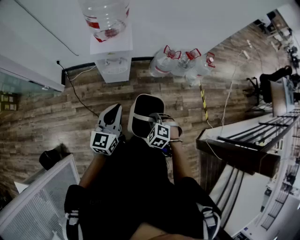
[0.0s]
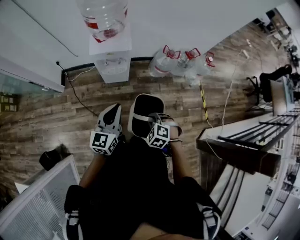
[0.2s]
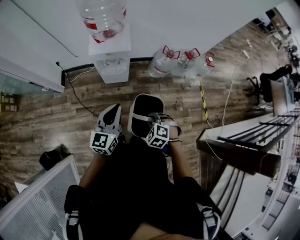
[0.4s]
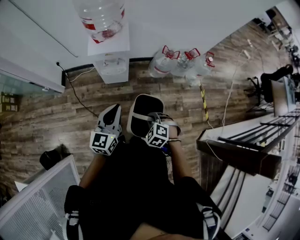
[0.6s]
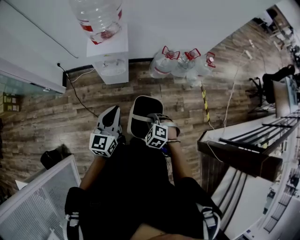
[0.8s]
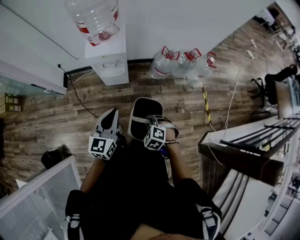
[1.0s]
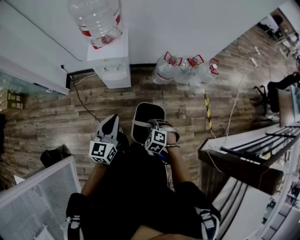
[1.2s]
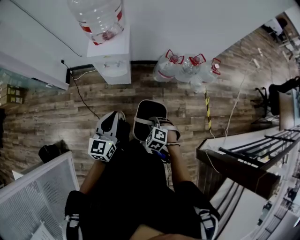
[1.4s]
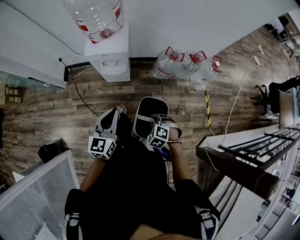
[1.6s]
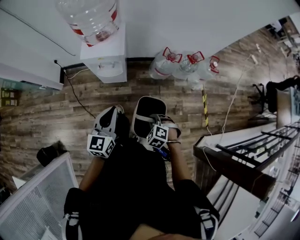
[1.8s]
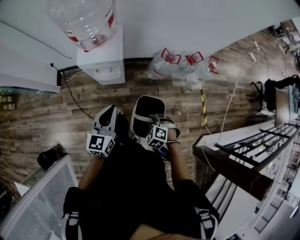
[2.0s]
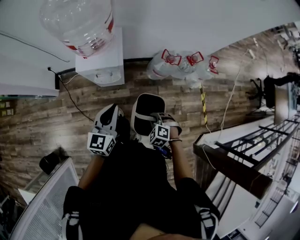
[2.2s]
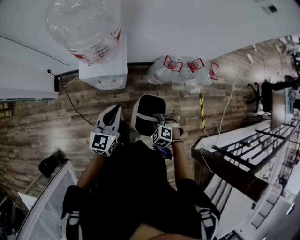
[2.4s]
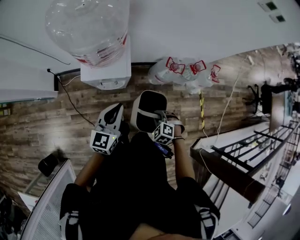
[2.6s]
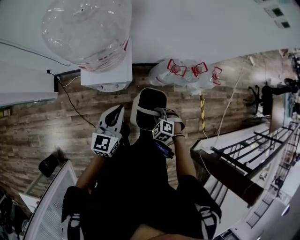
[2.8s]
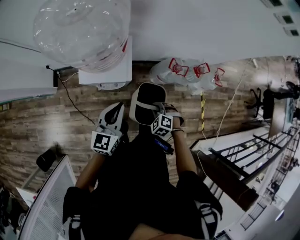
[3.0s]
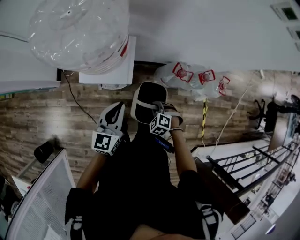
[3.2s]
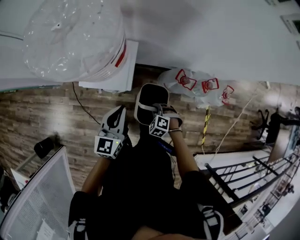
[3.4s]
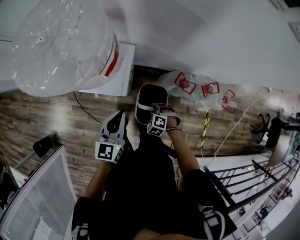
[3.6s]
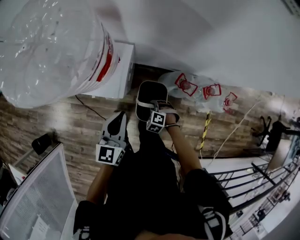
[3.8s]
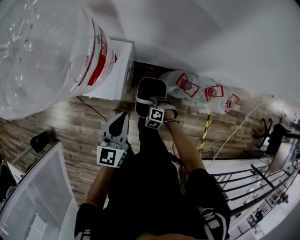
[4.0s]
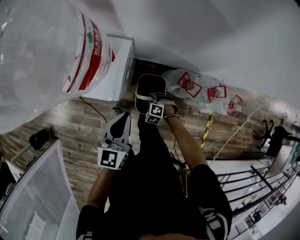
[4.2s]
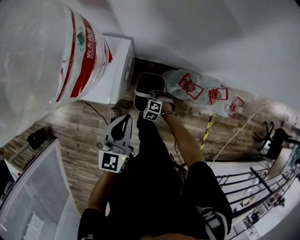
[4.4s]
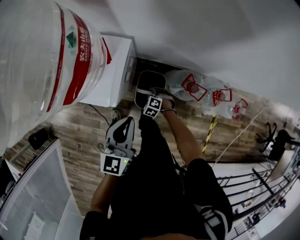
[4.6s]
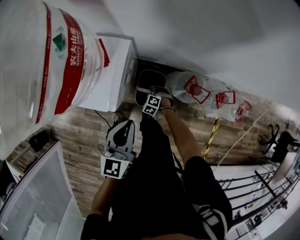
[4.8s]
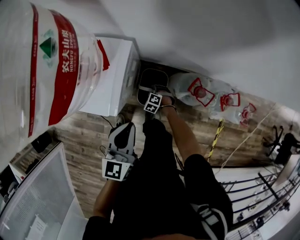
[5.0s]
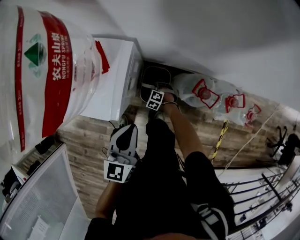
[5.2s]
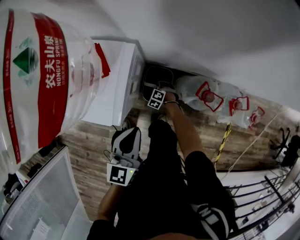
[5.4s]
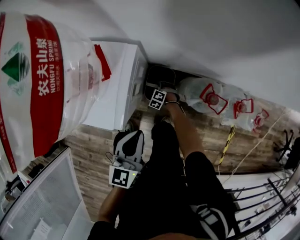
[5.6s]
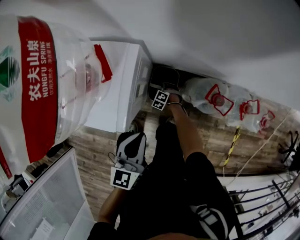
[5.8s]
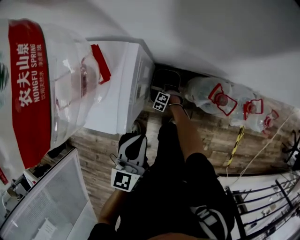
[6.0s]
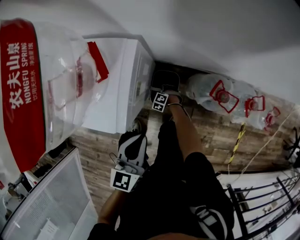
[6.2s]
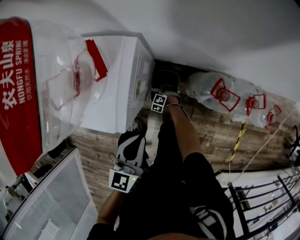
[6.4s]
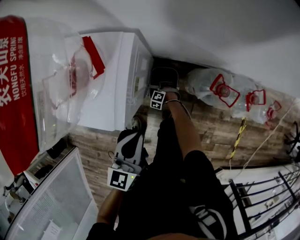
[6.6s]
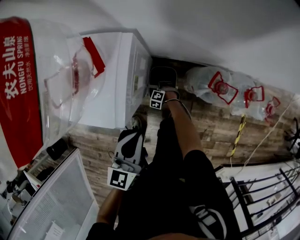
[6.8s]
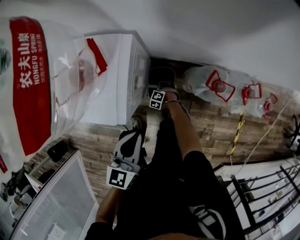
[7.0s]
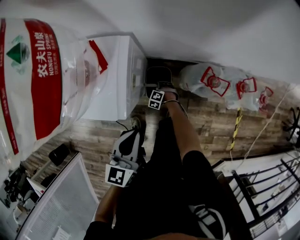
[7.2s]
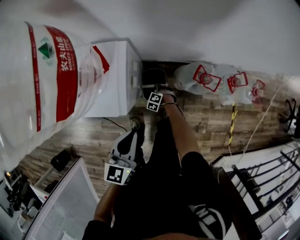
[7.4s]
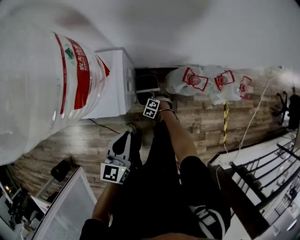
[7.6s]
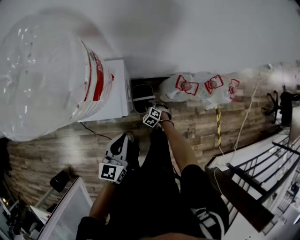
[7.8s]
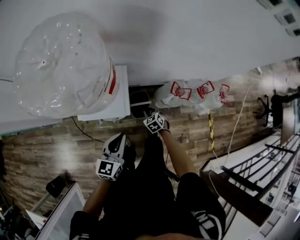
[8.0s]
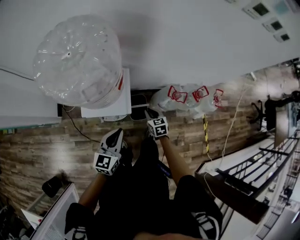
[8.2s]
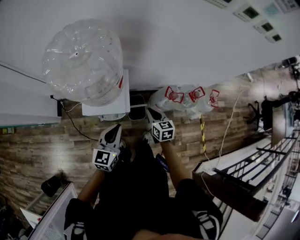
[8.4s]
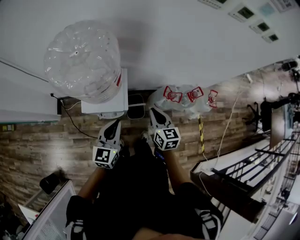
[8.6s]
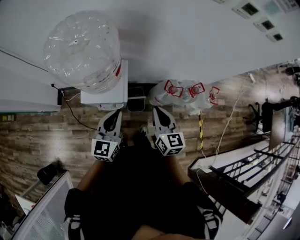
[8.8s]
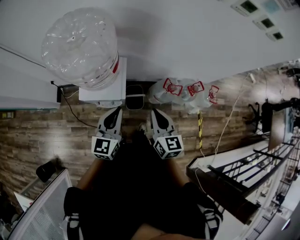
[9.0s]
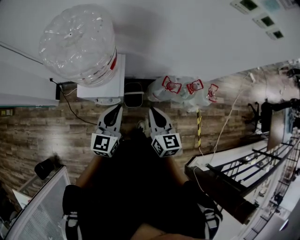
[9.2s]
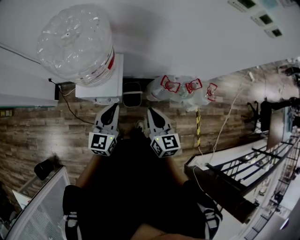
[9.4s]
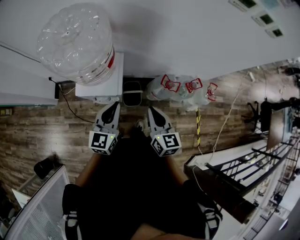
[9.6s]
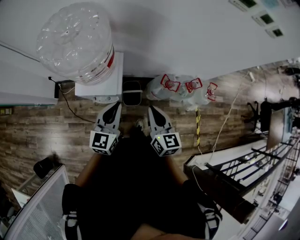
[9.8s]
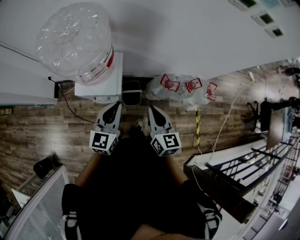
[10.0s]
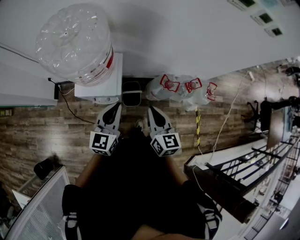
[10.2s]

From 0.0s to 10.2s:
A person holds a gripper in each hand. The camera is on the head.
From 0.0s to 1.4s: The two grippers go some 5 cm to the right.
From 1.4s to 3.0s: Both grippers move forward, about 30 cm.
From 3.0s to 4.4s: The right gripper shifts approximately 30 cm downward and forward. The left gripper goes approximately 15 cm to the right, downward and forward, and turns by some 20 degrees.
From 4.4s to 5.8s: The left gripper shifts roughly 10 cm downward. The right gripper shifts roughly 25 cm downward and forward.
From 5.8s to 7.2s: The right gripper ends up some 5 cm from where it was, and opens its fingers.
From 7.2s to 8.8s: The right gripper is displaced upward by roughly 70 cm, points its fingers about 50 degrees further upward, and closes. Meanwhile the left gripper shifts approximately 25 cm upward.
From 8.8s to 10.2s: There are only small adjustments of the grippers.

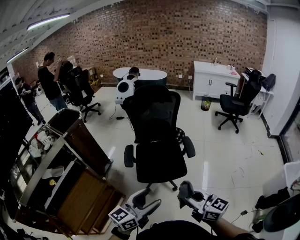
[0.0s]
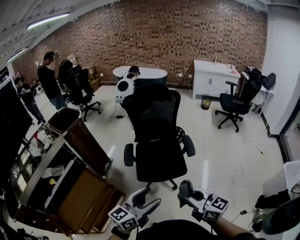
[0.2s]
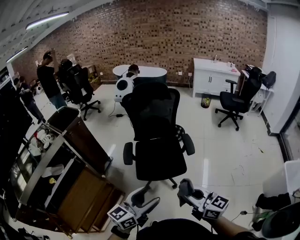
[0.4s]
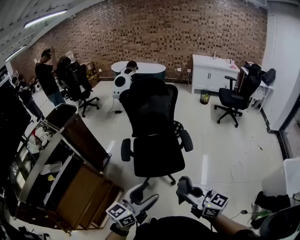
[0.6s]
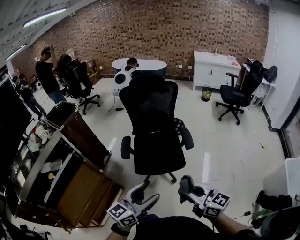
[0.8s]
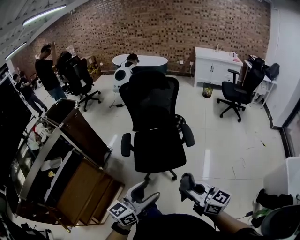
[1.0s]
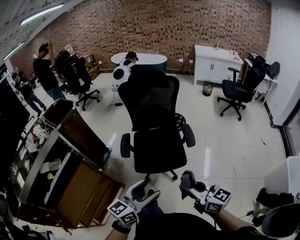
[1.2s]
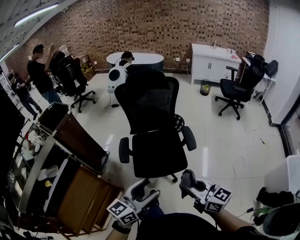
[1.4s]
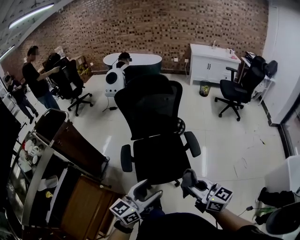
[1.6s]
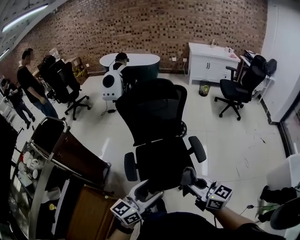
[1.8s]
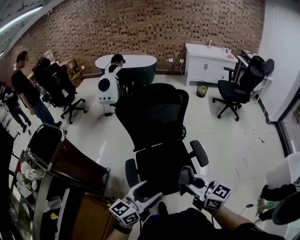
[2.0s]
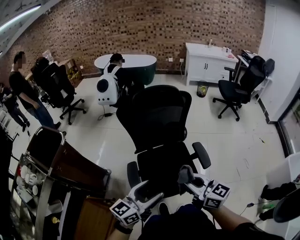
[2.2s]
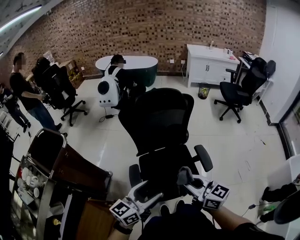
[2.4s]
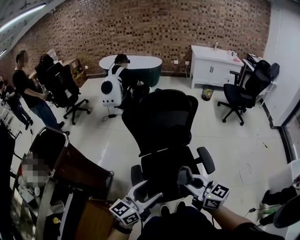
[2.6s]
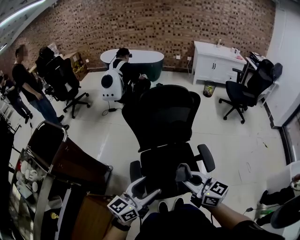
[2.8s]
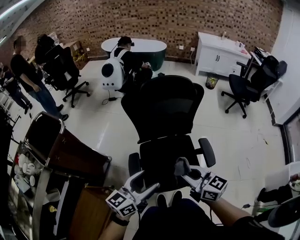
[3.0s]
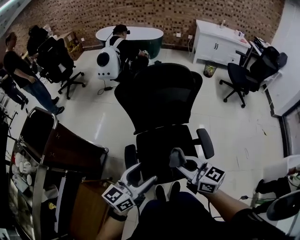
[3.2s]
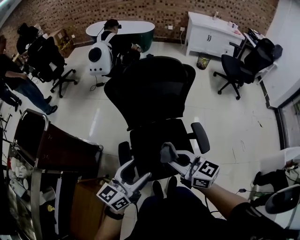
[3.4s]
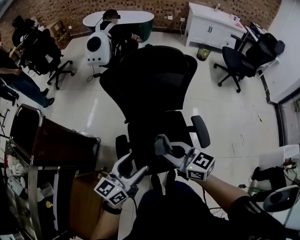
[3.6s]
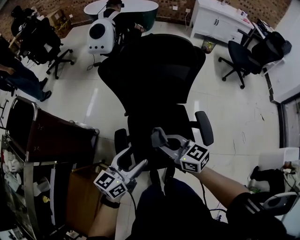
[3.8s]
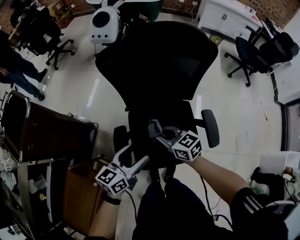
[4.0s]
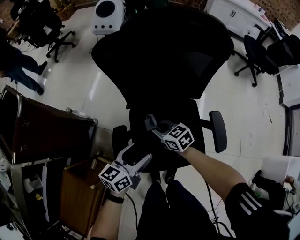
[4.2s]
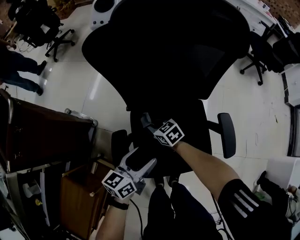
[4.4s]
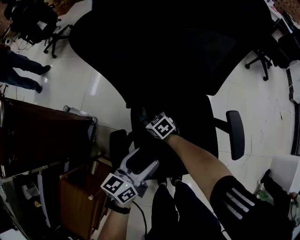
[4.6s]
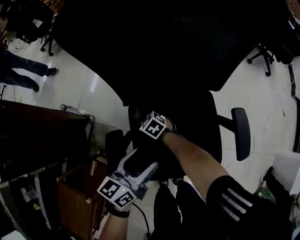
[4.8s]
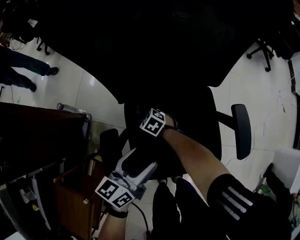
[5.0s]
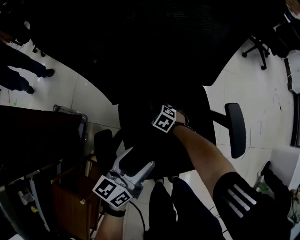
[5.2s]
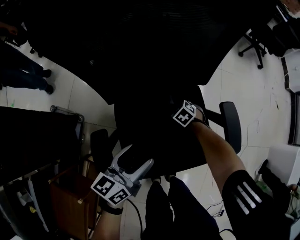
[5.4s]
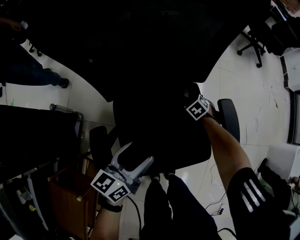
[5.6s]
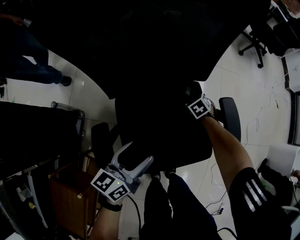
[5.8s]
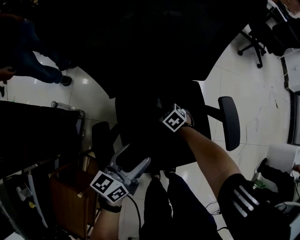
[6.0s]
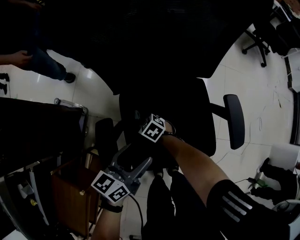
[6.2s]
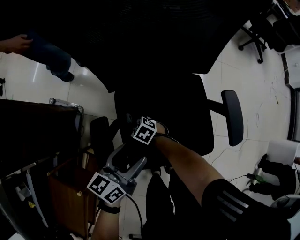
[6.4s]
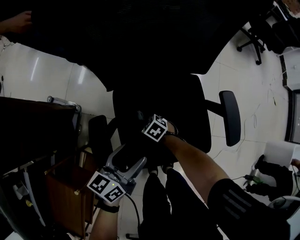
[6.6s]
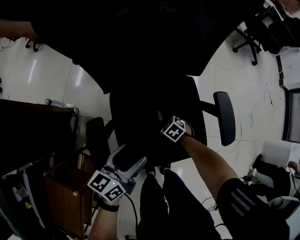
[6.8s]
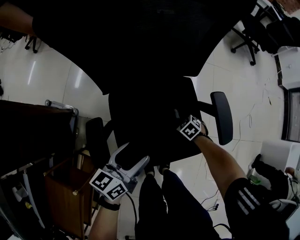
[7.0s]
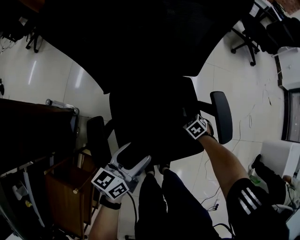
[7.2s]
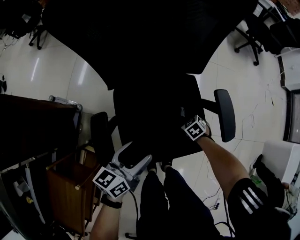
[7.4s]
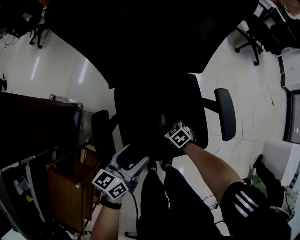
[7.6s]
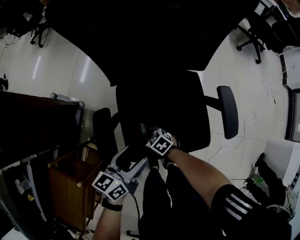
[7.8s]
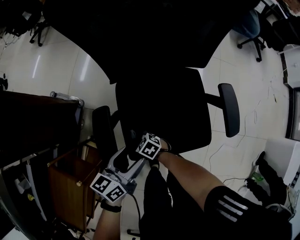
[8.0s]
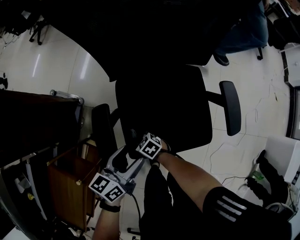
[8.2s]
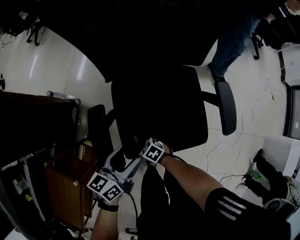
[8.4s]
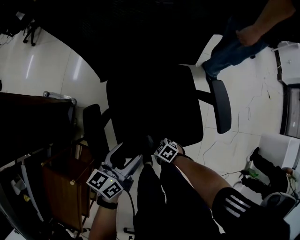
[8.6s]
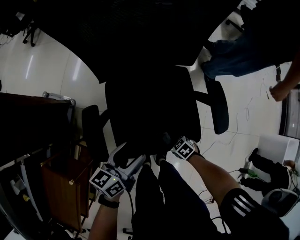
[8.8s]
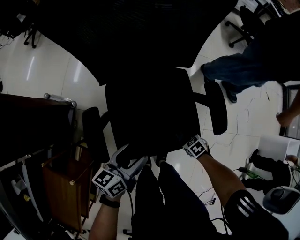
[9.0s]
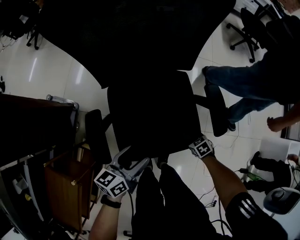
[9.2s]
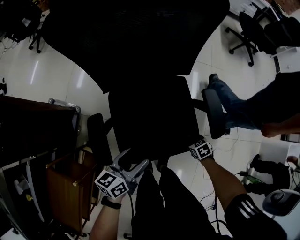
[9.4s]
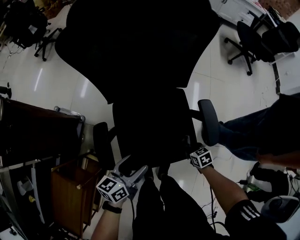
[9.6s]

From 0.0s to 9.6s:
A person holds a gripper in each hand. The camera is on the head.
From 0.0s to 1.6s: Both grippers move forward, some 15 cm.
From 1.6s to 3.2s: Both grippers move forward and to the left, some 25 cm.
From 3.2s to 4.8s: The right gripper shifts about 60 cm downward and forward, and points its fingers about 40 degrees further downward. Meanwhile the left gripper is displaced downward and forward by about 35 cm, and swivels some 20 degrees.
From 6.4s to 8.0s: The left gripper ends up some 5 cm from where it was.
From 8.0s to 9.6s: The right gripper shifts by roughly 35 cm, and rotates about 40 degrees. Meanwhile the left gripper shifts by about 5 cm.

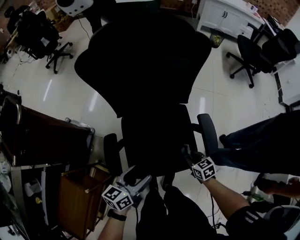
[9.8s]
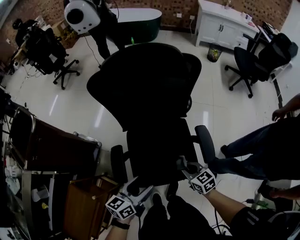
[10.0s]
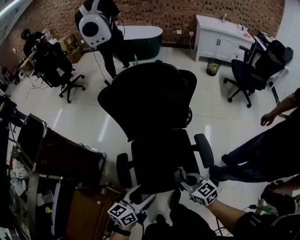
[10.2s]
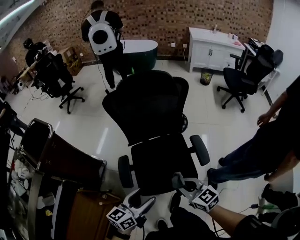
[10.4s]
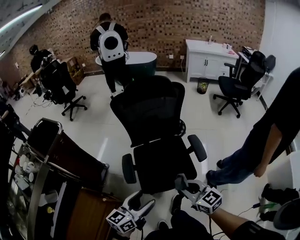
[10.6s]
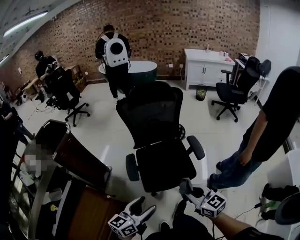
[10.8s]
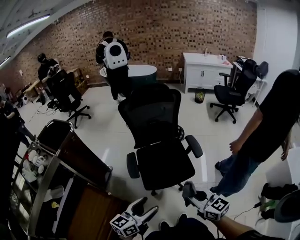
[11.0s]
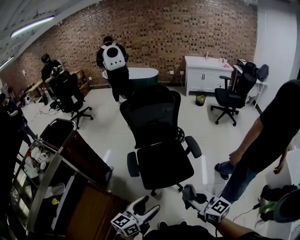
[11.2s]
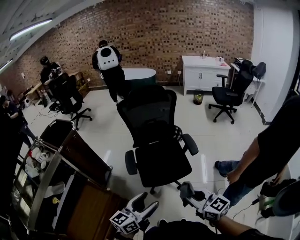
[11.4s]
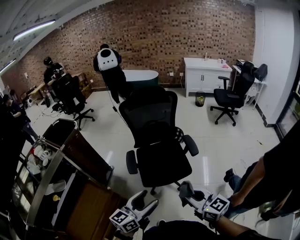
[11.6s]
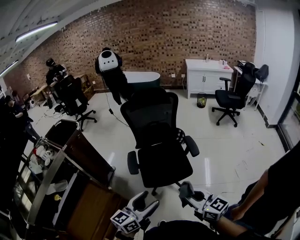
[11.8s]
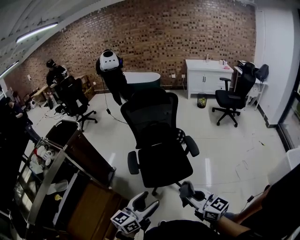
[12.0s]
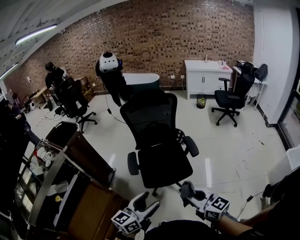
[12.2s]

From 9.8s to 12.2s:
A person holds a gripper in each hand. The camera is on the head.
From 9.8s to 11.0s: The left gripper is displaced backward and upward by approximately 40 cm, and rotates about 20 degrees; the right gripper heads upward and backward, covering about 50 cm, and tilts its fingers approximately 40 degrees upward.
From 11.0s to 12.2s: Both grippers move backward, some 10 cm.

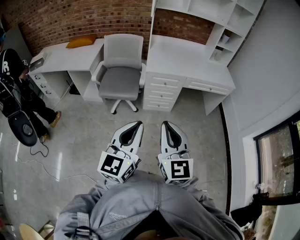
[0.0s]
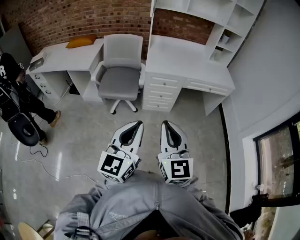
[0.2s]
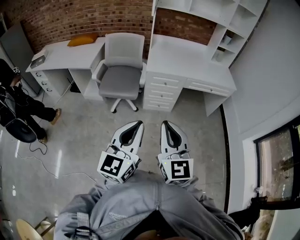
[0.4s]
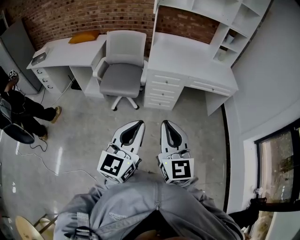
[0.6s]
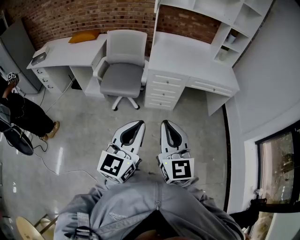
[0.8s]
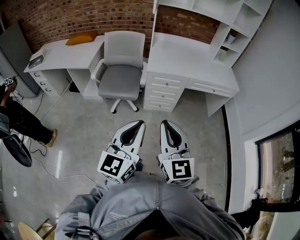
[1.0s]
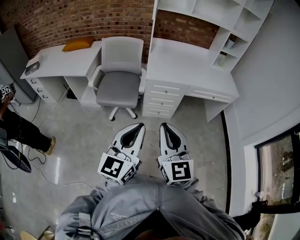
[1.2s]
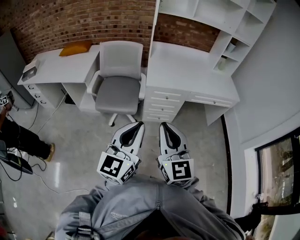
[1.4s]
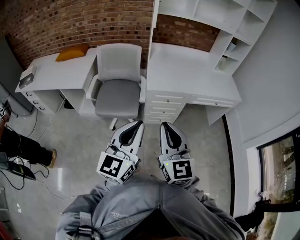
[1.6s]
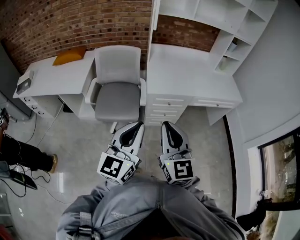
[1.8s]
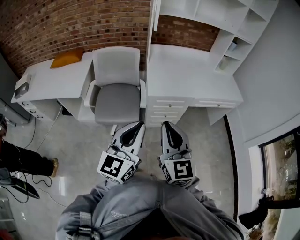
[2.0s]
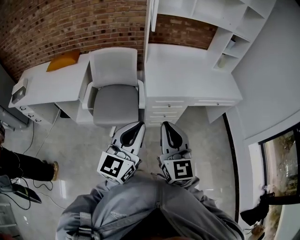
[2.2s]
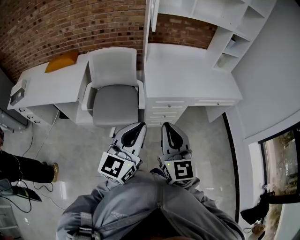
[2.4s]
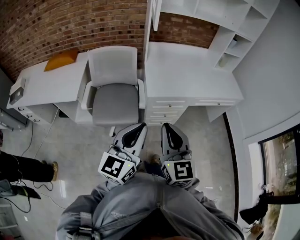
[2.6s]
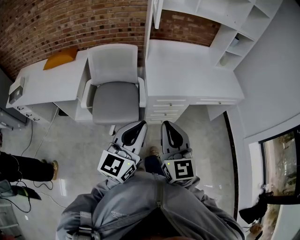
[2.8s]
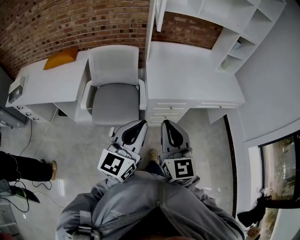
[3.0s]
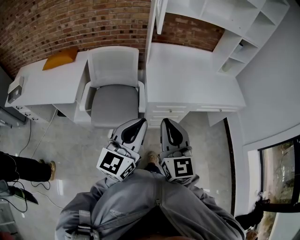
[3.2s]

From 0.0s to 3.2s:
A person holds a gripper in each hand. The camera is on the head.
From 0.0s to 1.6s: The two grippers go some 20 cm forward.
From 1.6s to 3.2s: Both grippers travel together forward, roughly 15 cm.
